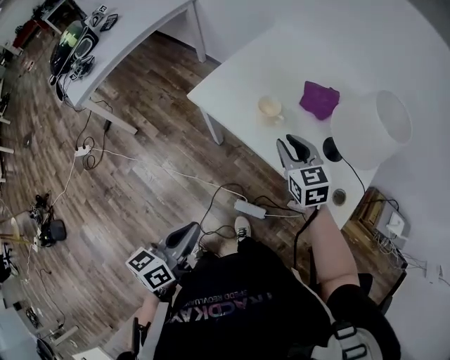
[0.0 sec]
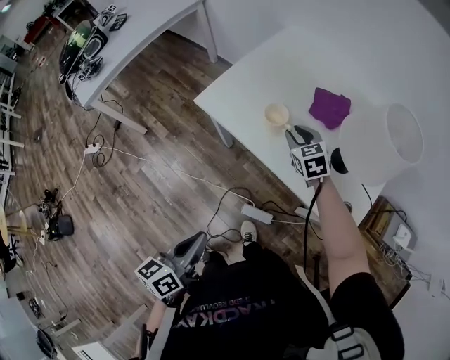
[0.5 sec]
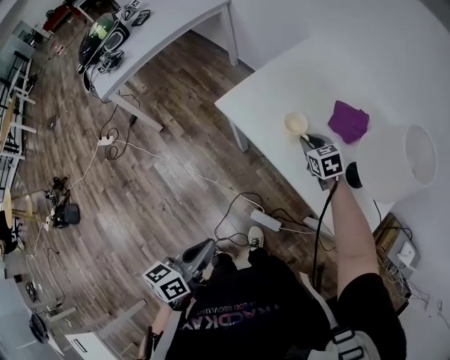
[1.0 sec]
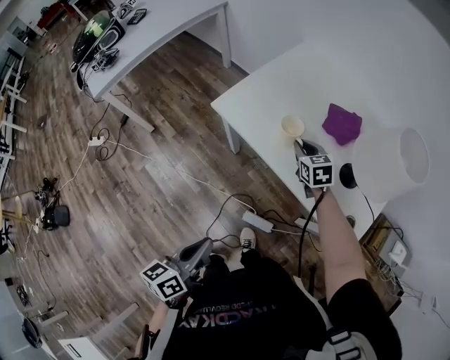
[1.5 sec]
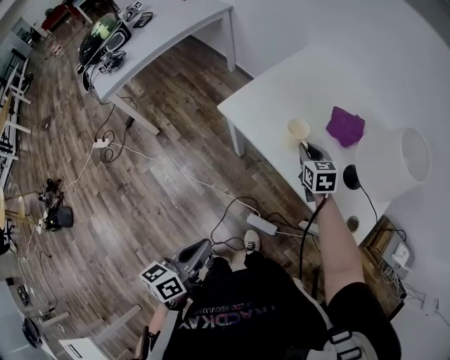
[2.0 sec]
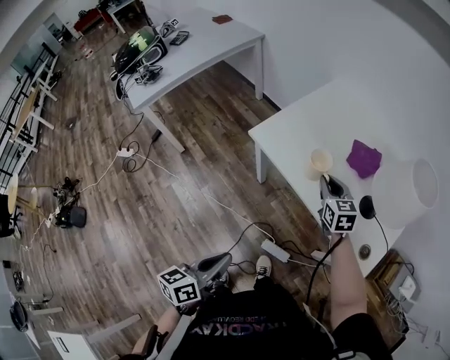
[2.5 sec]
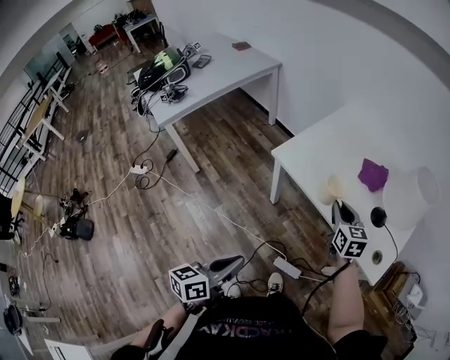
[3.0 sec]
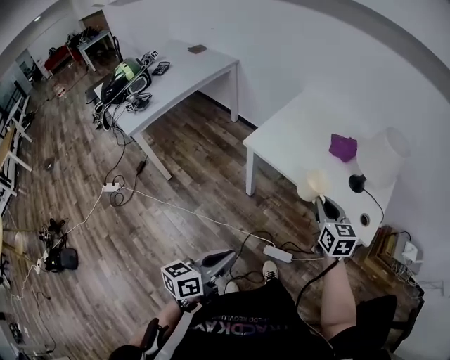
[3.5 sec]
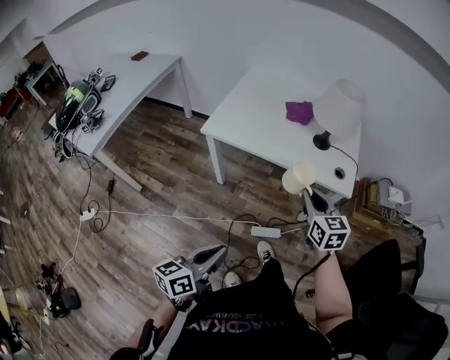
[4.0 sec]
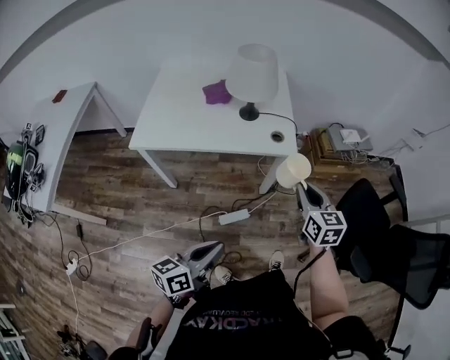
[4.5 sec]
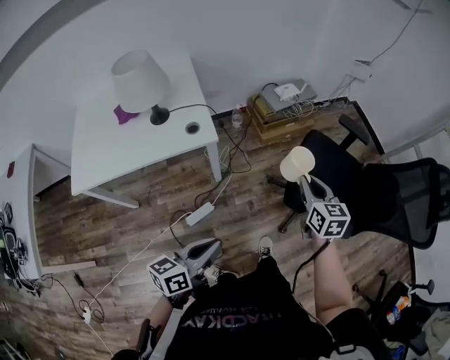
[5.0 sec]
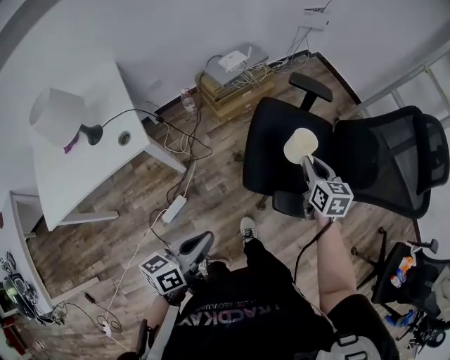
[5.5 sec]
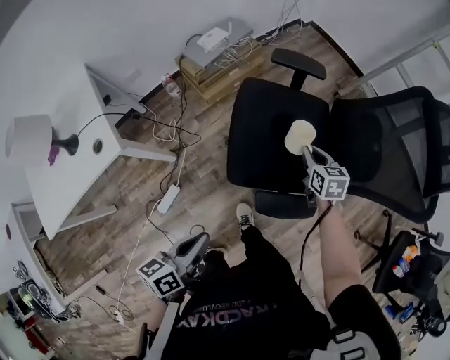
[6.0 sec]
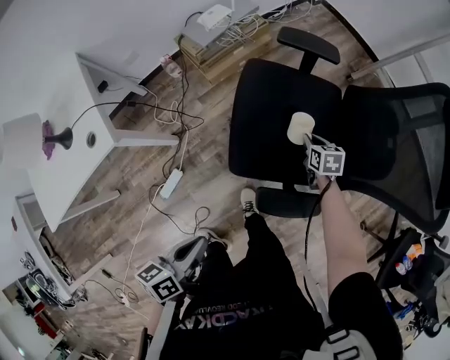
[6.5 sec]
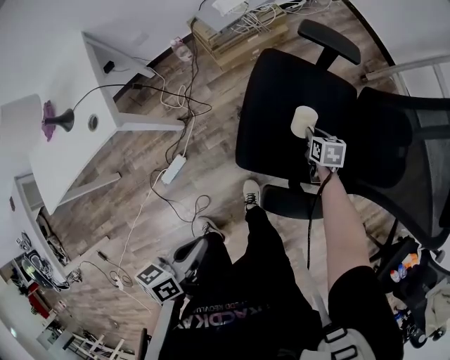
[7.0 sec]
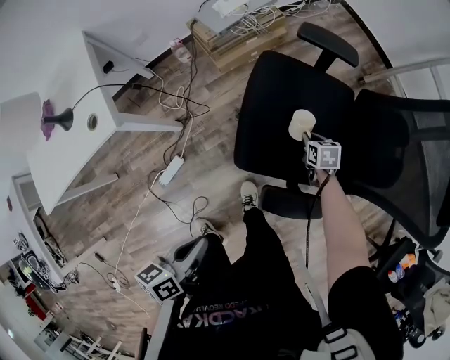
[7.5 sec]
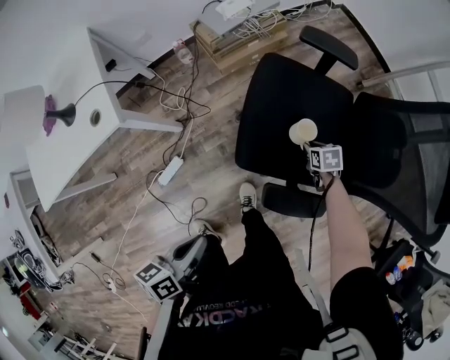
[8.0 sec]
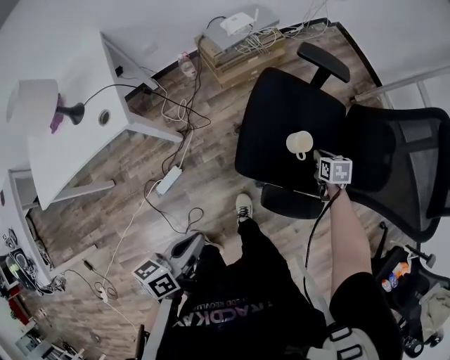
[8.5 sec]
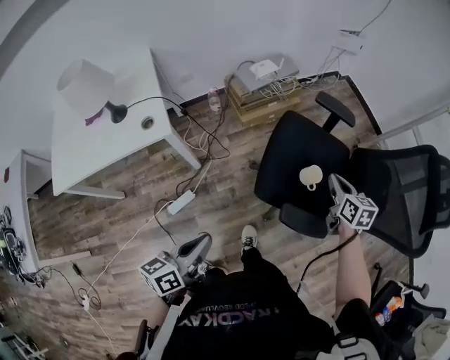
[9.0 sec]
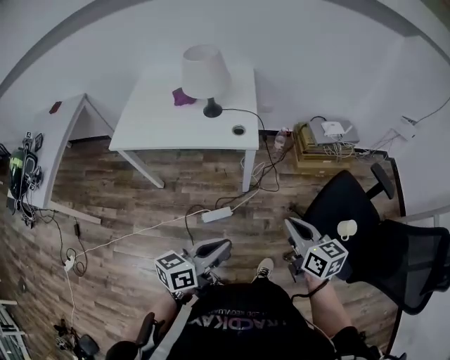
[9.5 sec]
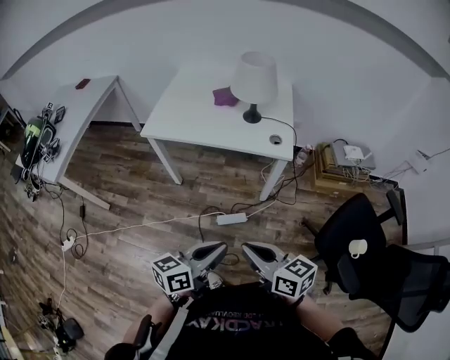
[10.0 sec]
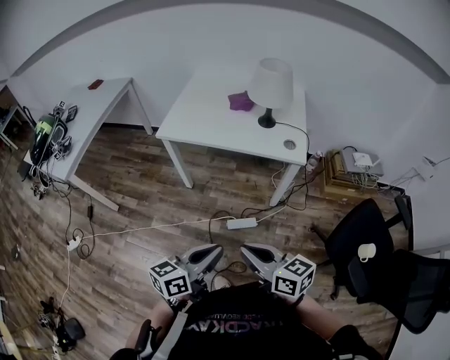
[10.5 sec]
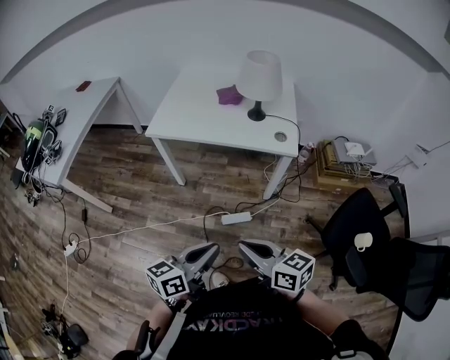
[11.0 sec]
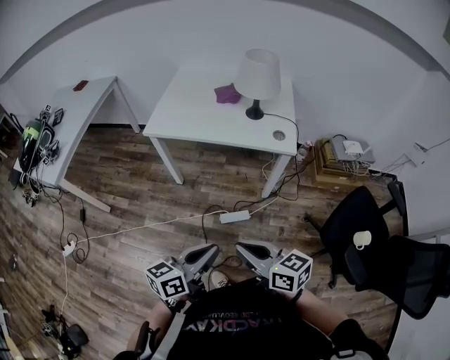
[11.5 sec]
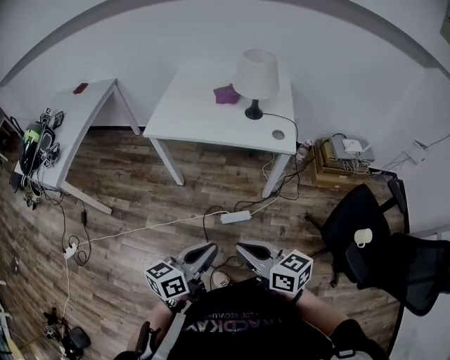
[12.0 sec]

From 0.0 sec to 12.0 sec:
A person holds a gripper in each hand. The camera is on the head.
From 0.0 sec to 2.0 sec: The right gripper moves downward and forward, approximately 10 cm.
From 2.0 sec to 4.0 sec: The right gripper shifts by some 35 cm, and rotates some 30 degrees, while the left gripper shifts by roughly 10 cm, and turns by approximately 30 degrees.
From 4.0 sec to 6.0 sec: The pair of grippers is taken roughly 70 cm. The left gripper rotates about 50 degrees. The right gripper rotates some 70 degrees.
From 6.0 sec to 8.0 sec: The right gripper is displaced downward by some 15 cm, and rotates some 30 degrees.
From 8.0 sec to 10.0 sec: The left gripper moves approximately 35 cm, and swivels approximately 40 degrees. The right gripper moves roughly 80 cm, and tilts its fingers roughly 50 degrees upward.
From 10.0 sec to 12.0 sec: Both grippers move to the left, roughly 5 cm.

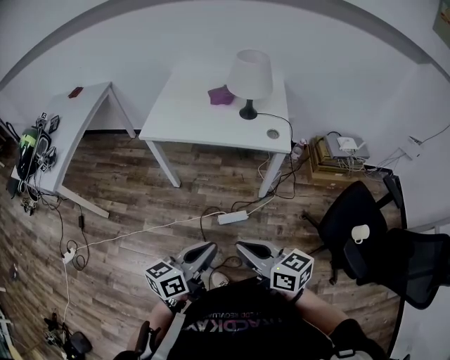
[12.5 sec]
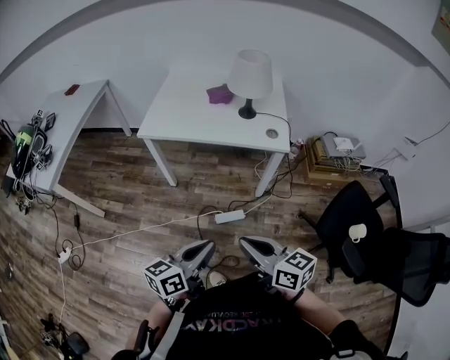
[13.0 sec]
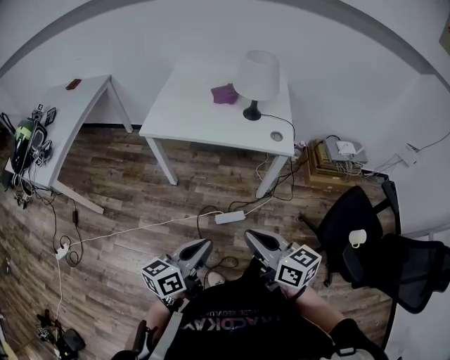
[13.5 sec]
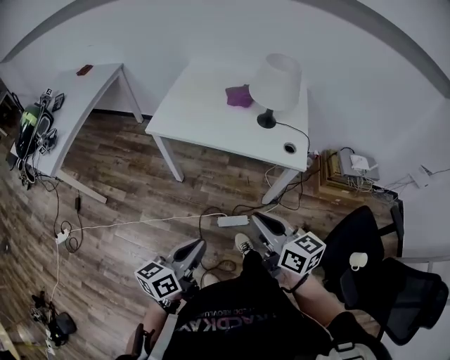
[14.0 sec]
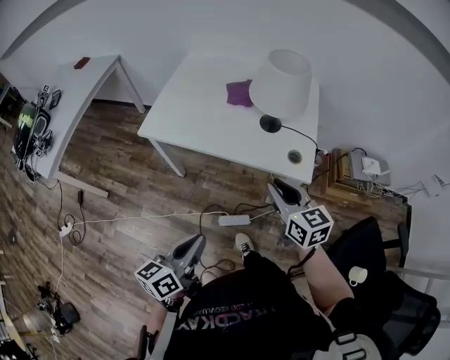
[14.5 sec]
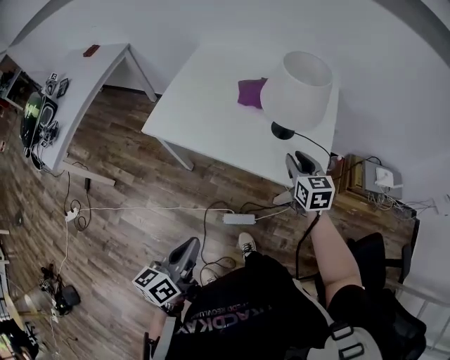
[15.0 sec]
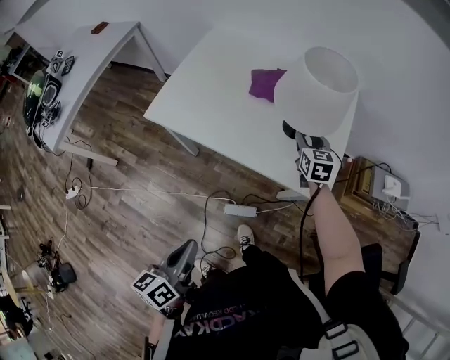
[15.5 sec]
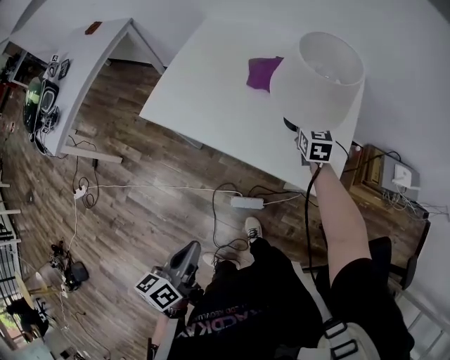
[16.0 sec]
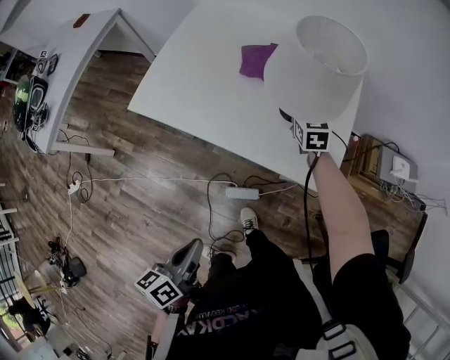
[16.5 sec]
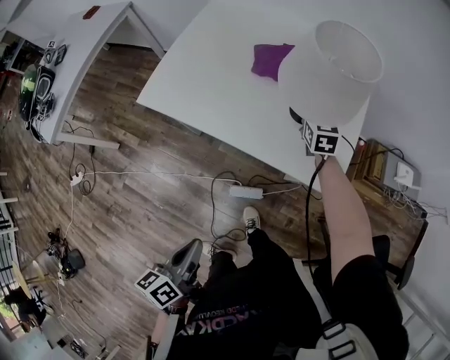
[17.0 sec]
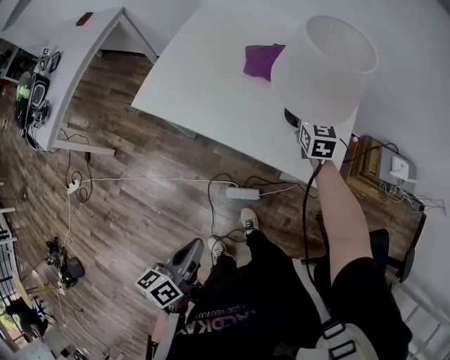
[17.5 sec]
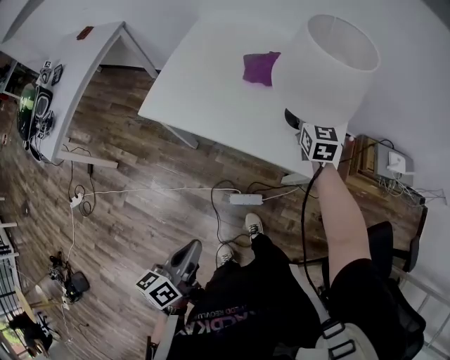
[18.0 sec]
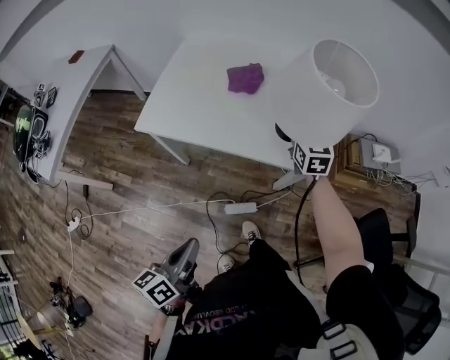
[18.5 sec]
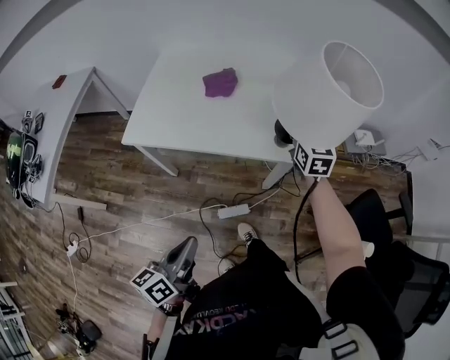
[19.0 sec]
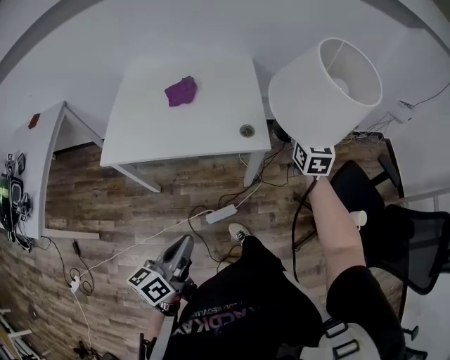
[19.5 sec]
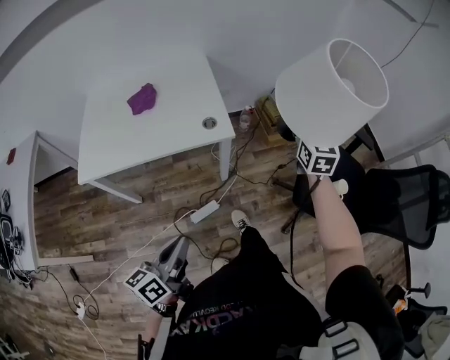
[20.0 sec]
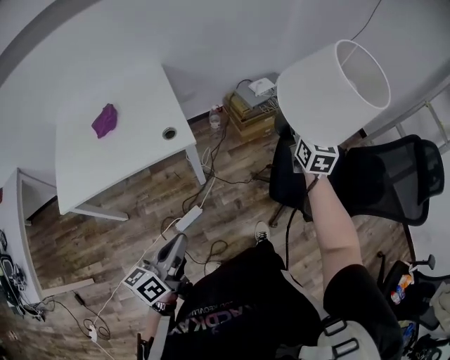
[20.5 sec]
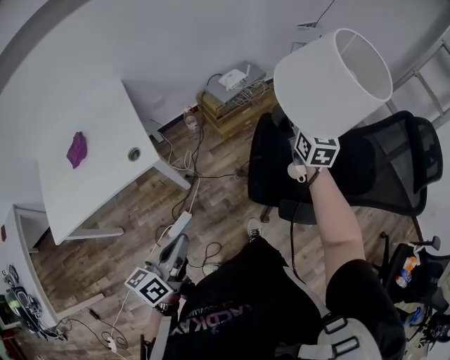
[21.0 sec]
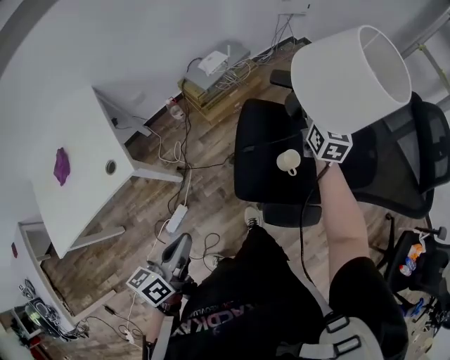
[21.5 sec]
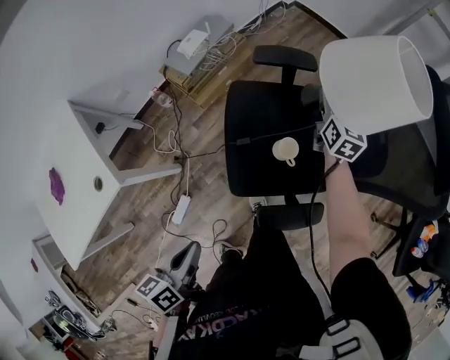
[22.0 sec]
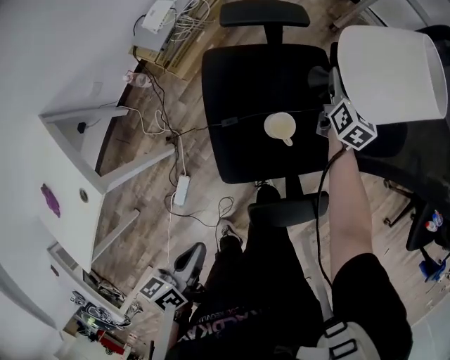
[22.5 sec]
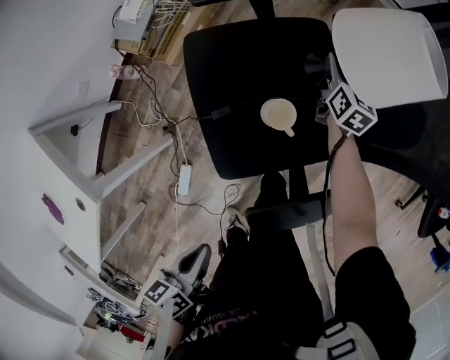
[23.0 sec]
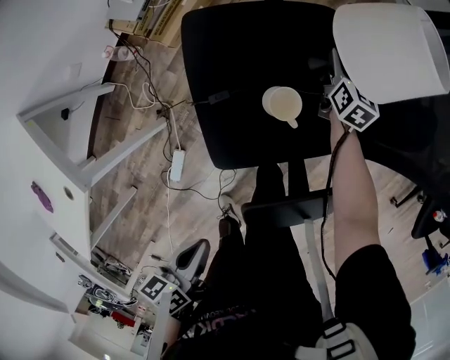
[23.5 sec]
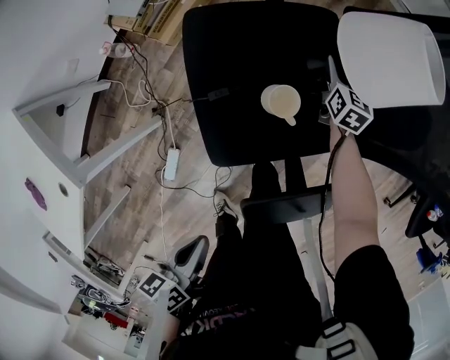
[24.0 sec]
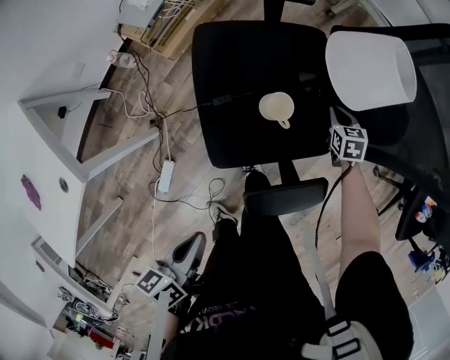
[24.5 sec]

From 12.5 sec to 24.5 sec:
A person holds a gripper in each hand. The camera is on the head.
From 12.5 sec to 14.5 sec: The left gripper travels forward by about 20 cm, while the right gripper moves forward, some 35 cm, and changes its angle by about 20 degrees.
From 14.5 sec to 16.5 sec: The right gripper shifts approximately 35 cm forward and downward. Meanwhile the left gripper travels downward by roughly 5 cm, and rotates about 20 degrees.
From 16.5 sec to 18.5 sec: The left gripper heads upward, covering about 5 cm, while the right gripper travels backward and upward by some 20 cm.
From 18.5 sec to 20.5 sec: The left gripper changes place by roughly 20 cm, and changes its angle by some 40 degrees. Meanwhile the right gripper changes place by approximately 60 cm, and swivels about 40 degrees.
From 20.5 sec to 22.5 sec: The left gripper ends up some 40 cm from where it was, and tilts its fingers about 30 degrees downward. The right gripper ends up about 60 cm from where it was, and rotates approximately 50 degrees.
From 22.5 sec to 24.5 sec: The right gripper shifts roughly 20 cm downward, backward and to the right, tips its fingers downward by approximately 30 degrees, and closes up.

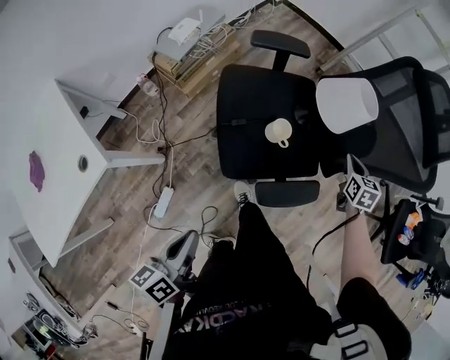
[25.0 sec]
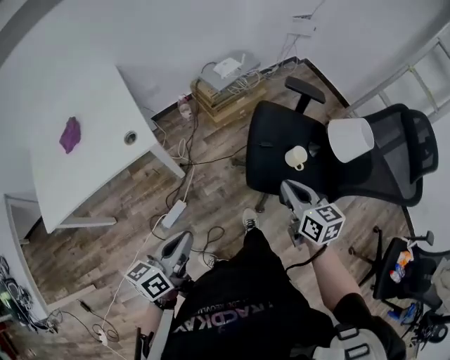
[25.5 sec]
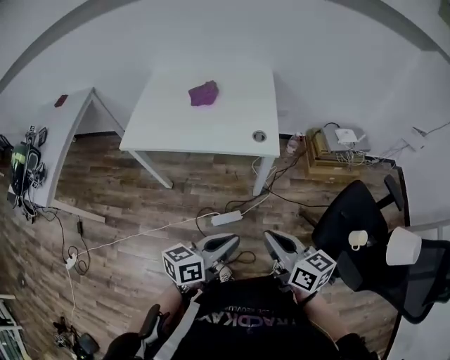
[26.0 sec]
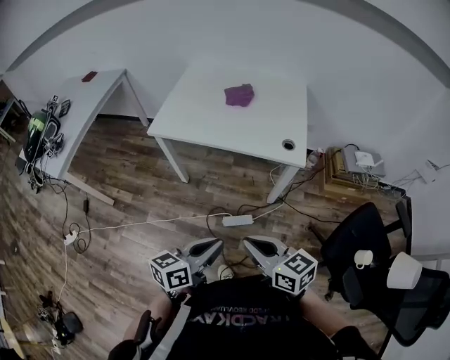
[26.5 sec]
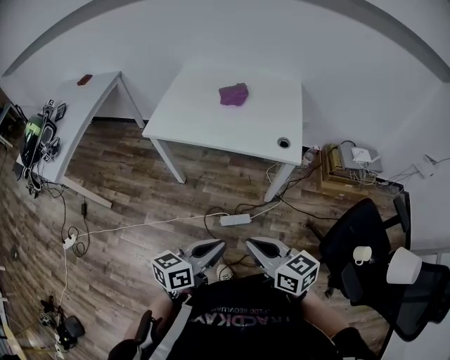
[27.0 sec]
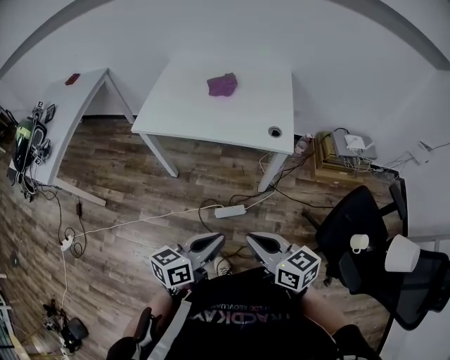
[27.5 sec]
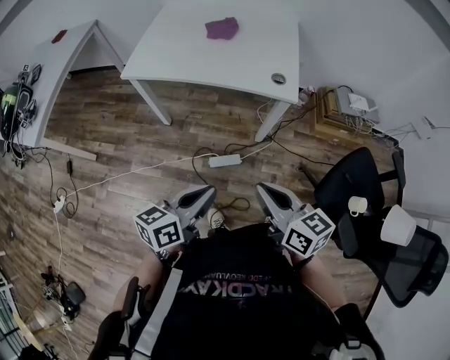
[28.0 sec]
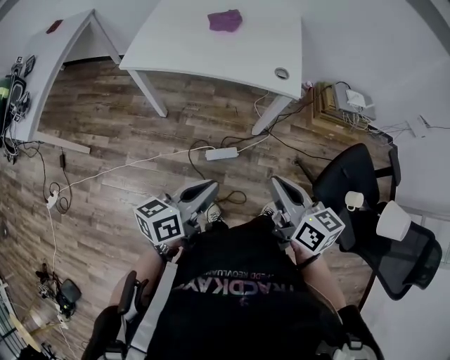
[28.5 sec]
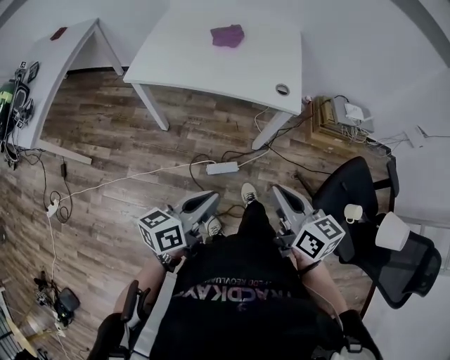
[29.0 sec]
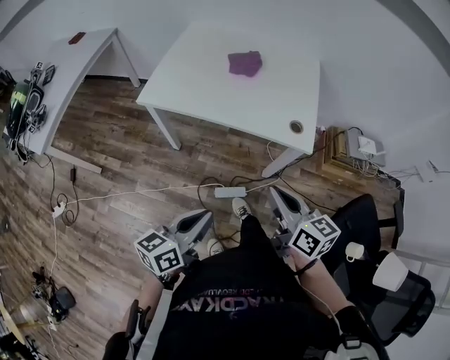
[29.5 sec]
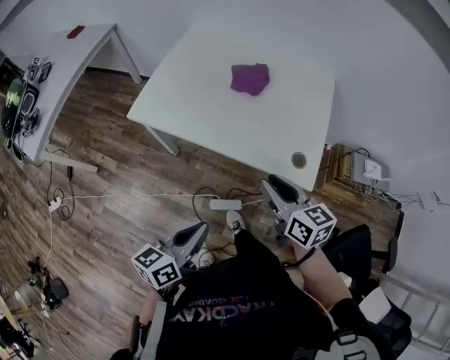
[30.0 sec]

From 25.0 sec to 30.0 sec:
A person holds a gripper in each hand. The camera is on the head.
From 25.0 sec to 27.5 sec: The right gripper changes place by about 80 cm, and changes its angle by approximately 100 degrees. The left gripper ends up roughly 35 cm from where it was, and changes its angle by roughly 40 degrees.
From 27.5 sec to 30.0 sec: The left gripper moves forward, about 20 cm, and turns by approximately 20 degrees; the right gripper goes approximately 35 cm forward, and opens.
